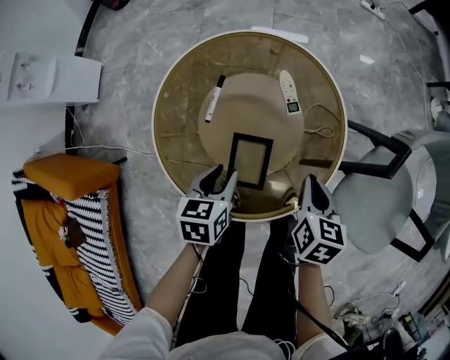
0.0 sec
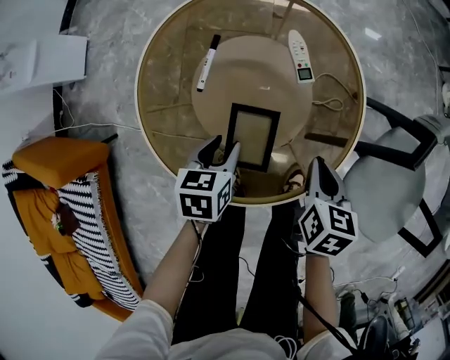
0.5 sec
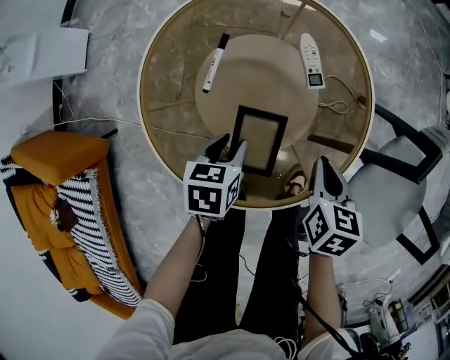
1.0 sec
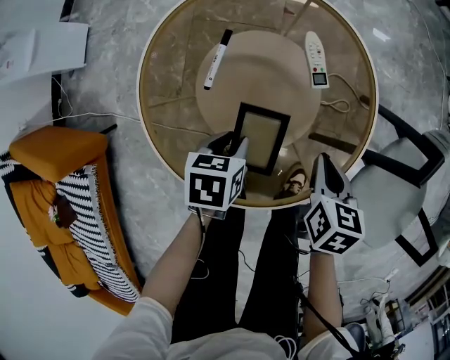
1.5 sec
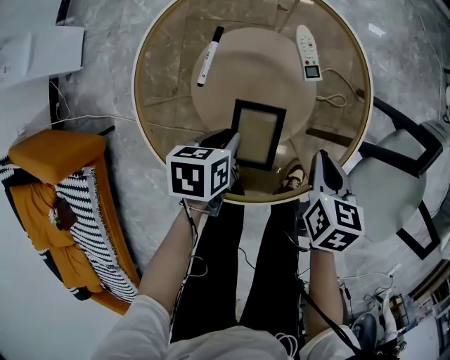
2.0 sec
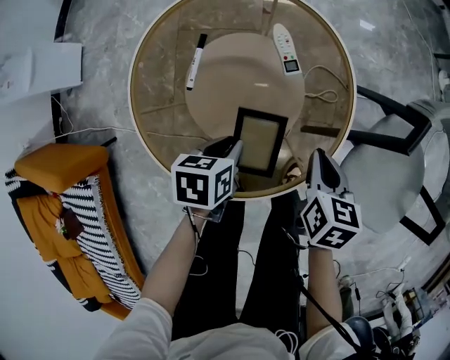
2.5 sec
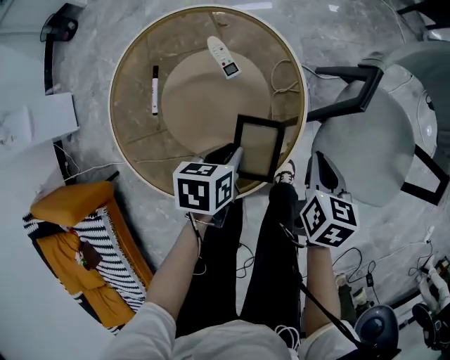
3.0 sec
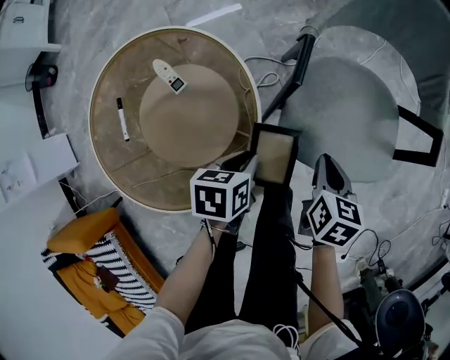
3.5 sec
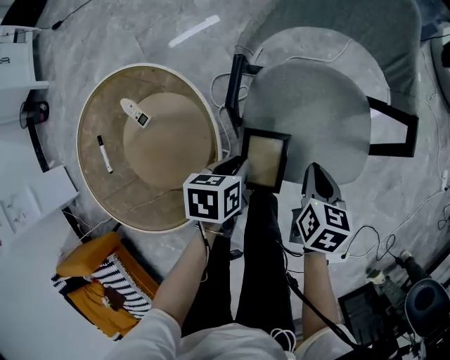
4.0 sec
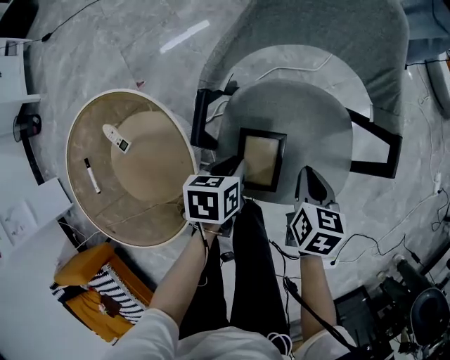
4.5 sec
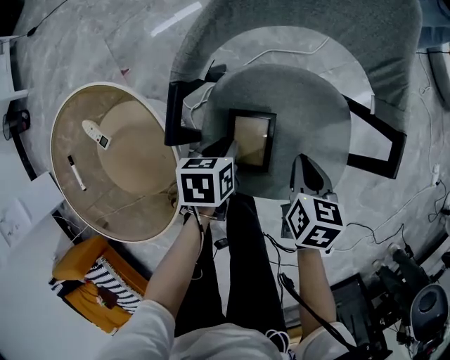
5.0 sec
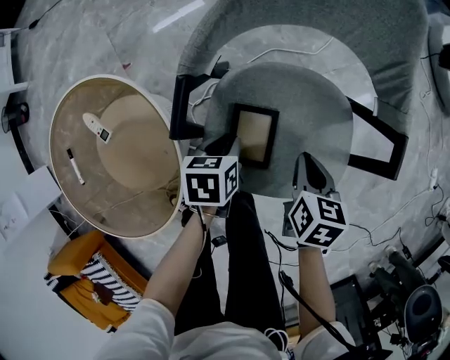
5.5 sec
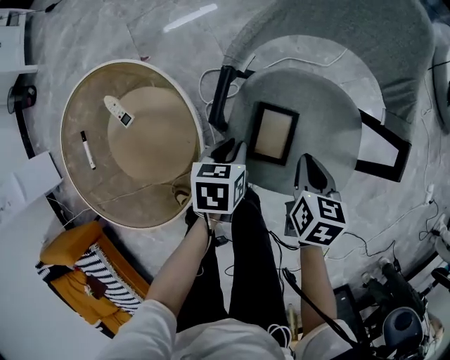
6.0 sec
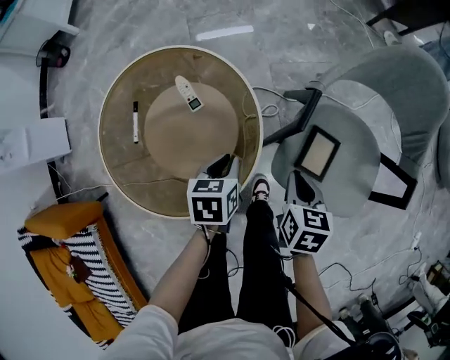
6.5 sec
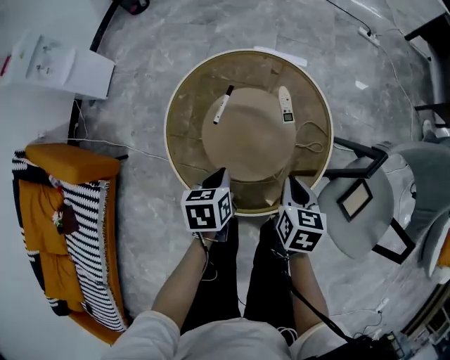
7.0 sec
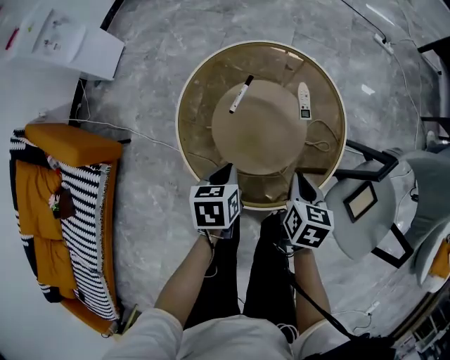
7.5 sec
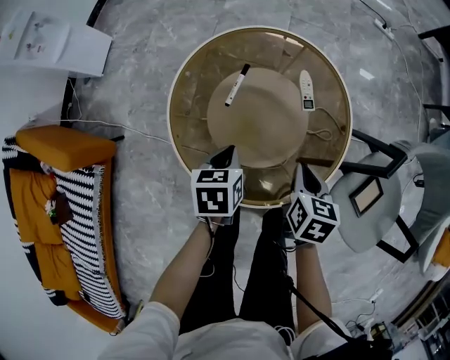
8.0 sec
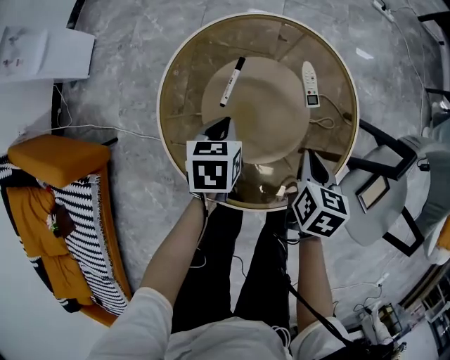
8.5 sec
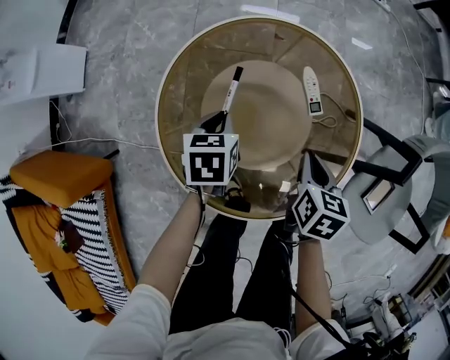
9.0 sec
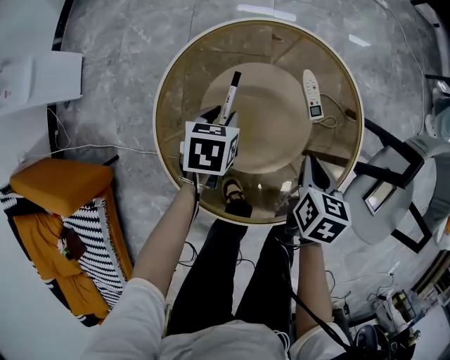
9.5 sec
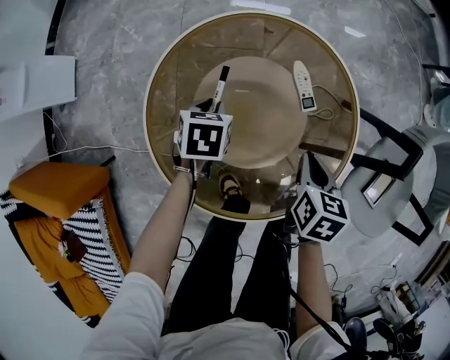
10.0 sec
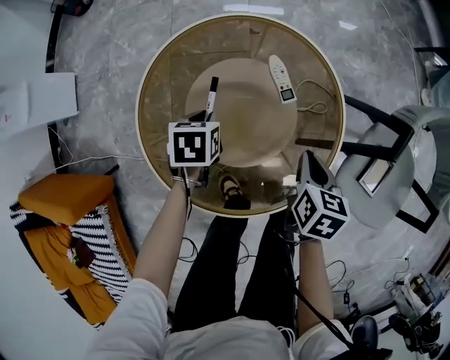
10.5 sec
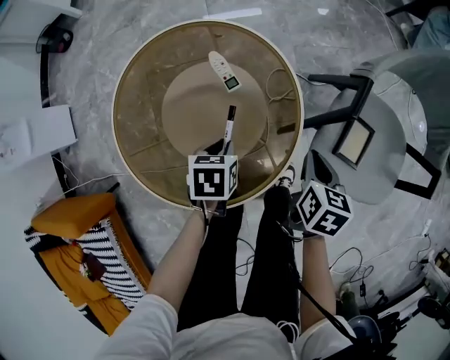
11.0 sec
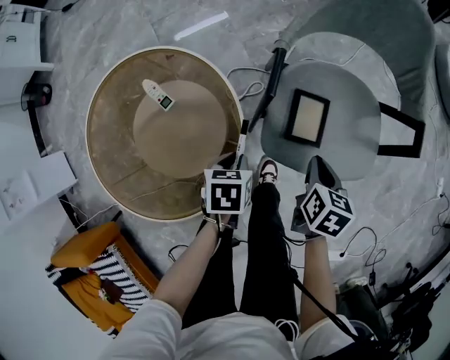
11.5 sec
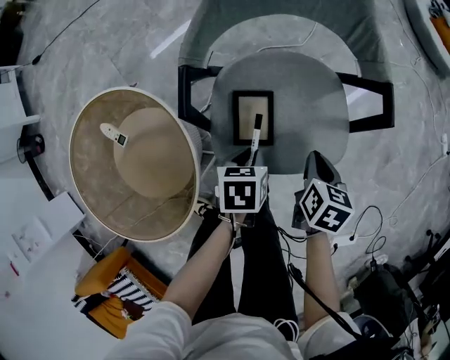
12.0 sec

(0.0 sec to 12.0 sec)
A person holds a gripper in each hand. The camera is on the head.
0.0 sec - 2.0 sec: The grippers both shift downward by roughly 10 cm.
2.0 sec - 4.0 sec: The left gripper moves some 40 cm, and changes its angle by about 30 degrees, while the right gripper changes place by approximately 35 cm, and swivels some 40 degrees.
4.0 sec - 6.0 sec: Both grippers move forward, some 5 cm.
6.0 sec - 8.0 sec: The two grippers travel together, about 40 cm. The left gripper turns by about 40 degrees, while the right gripper rotates some 30 degrees.
8.0 sec - 10.0 sec: The right gripper moves forward and downward, about 5 cm; the left gripper heads forward and downward, covering some 20 cm, and rotates about 20 degrees.
10.0 sec - 12.0 sec: Both grippers are carried approximately 60 cm. The right gripper turns by approximately 40 degrees; the left gripper rotates some 30 degrees.

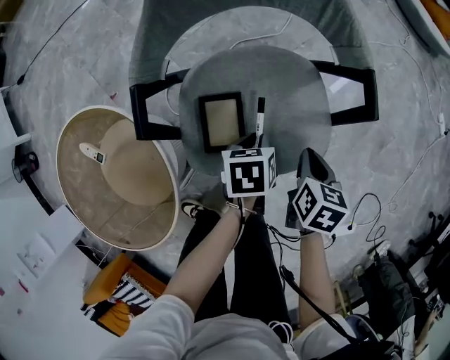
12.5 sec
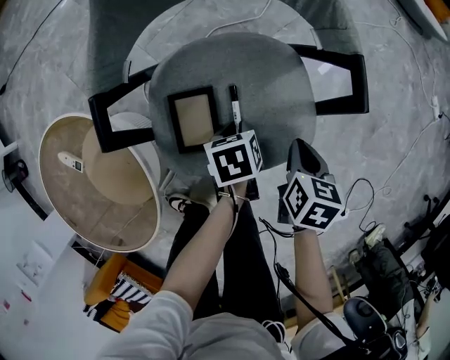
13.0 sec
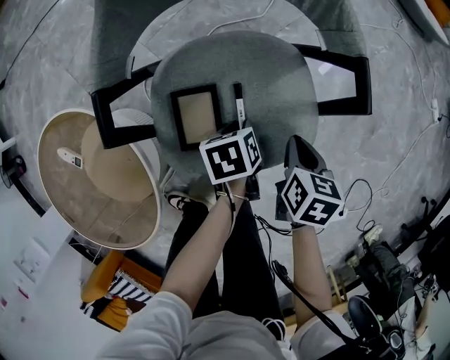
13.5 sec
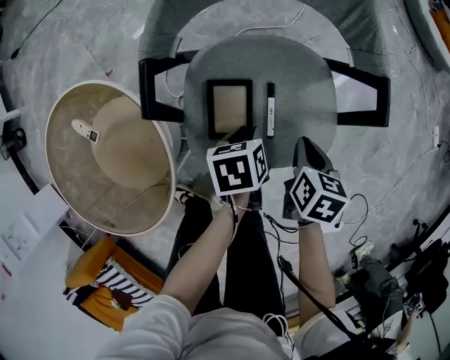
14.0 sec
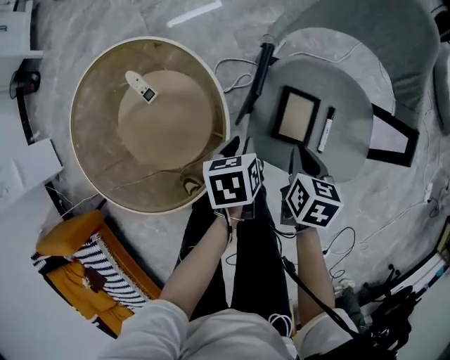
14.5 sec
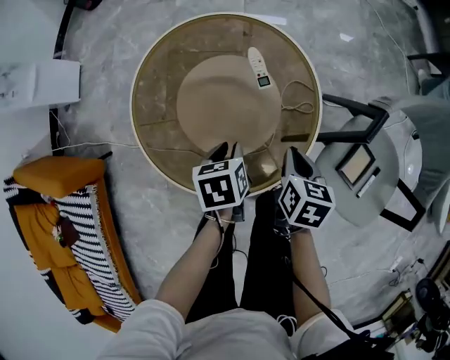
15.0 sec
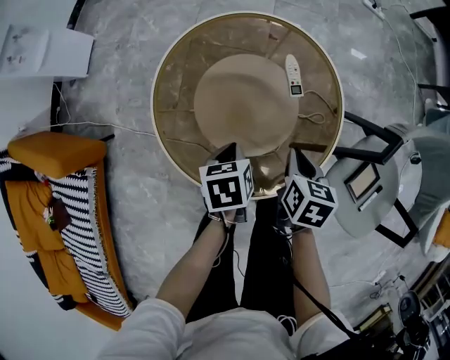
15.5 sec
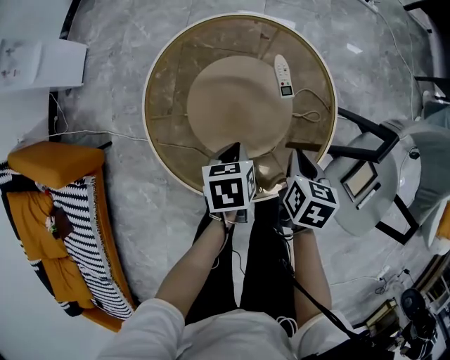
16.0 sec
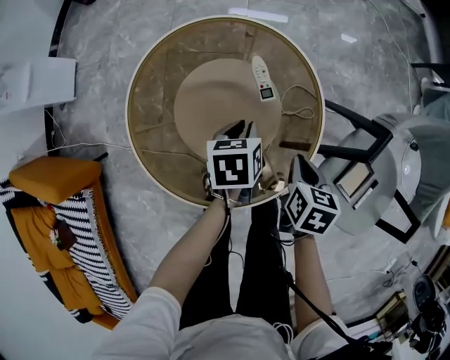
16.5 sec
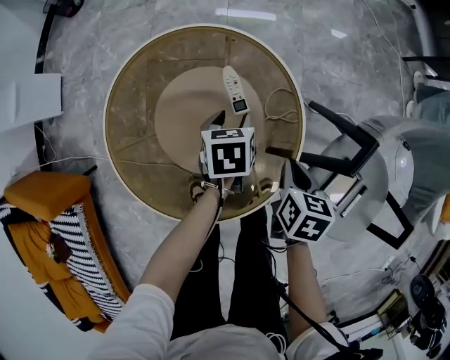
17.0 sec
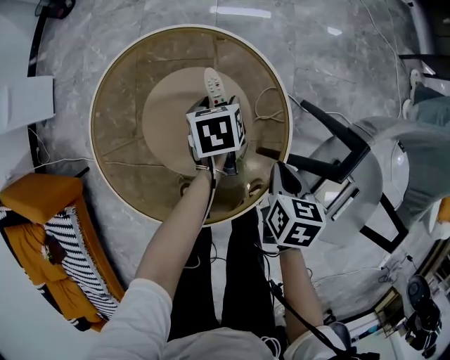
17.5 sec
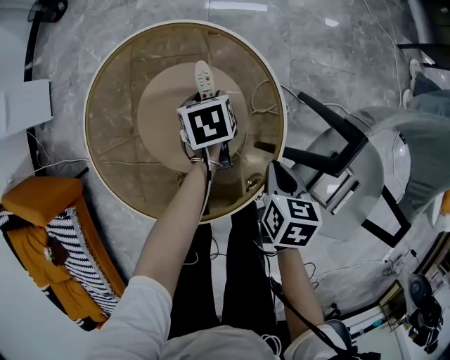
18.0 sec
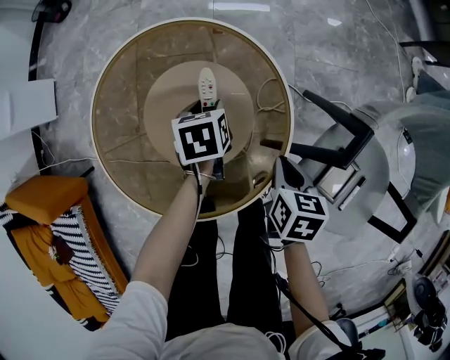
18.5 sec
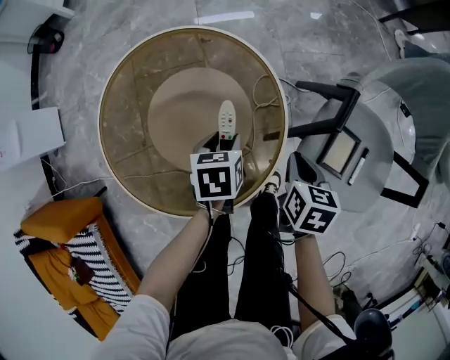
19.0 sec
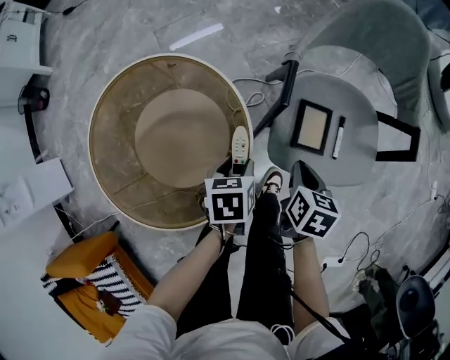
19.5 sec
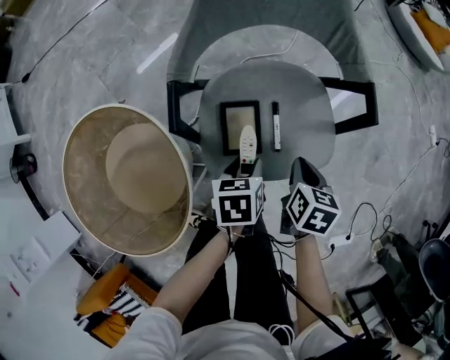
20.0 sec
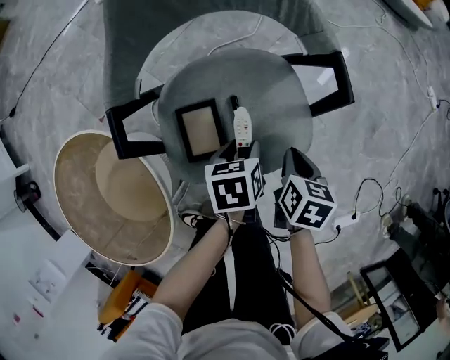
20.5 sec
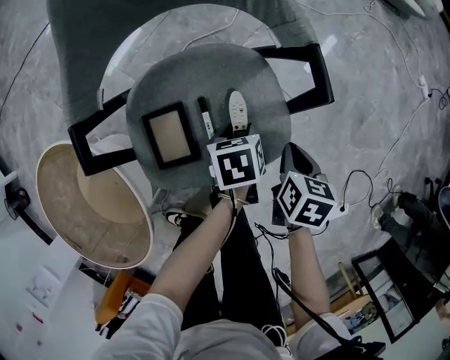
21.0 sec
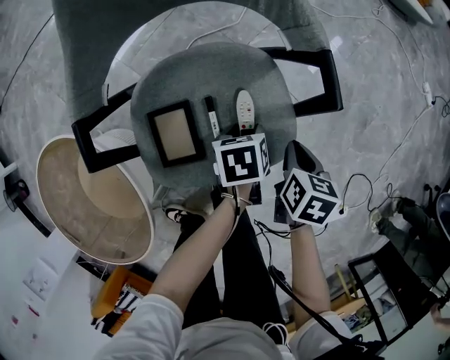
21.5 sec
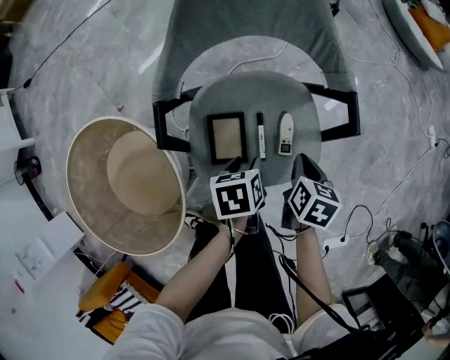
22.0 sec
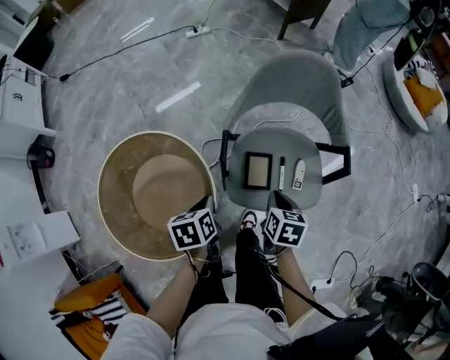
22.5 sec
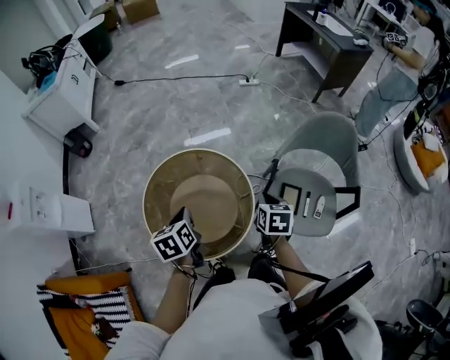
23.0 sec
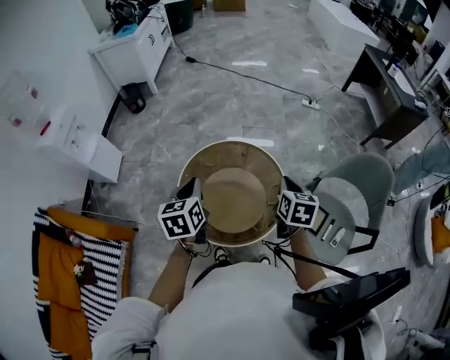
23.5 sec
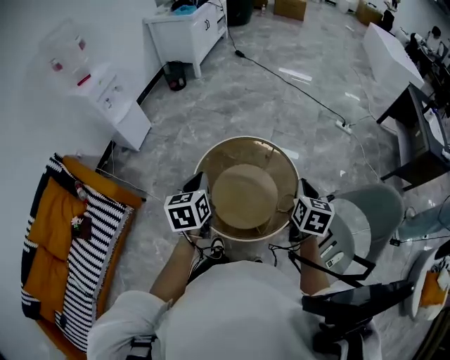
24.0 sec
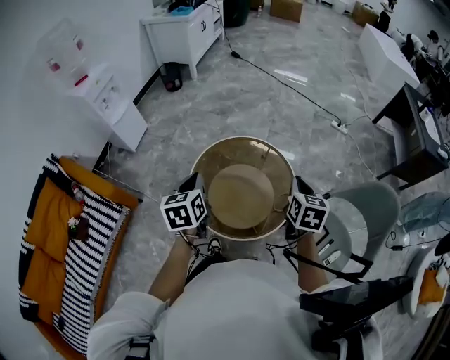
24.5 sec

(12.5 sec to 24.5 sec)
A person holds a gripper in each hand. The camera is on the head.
12.5 sec - 14.5 sec: The left gripper ends up about 25 cm from where it was, and changes its angle by some 30 degrees; the right gripper moves approximately 20 cm, and turns by some 20 degrees.
14.5 sec - 16.5 sec: The right gripper changes place by approximately 25 cm, and rotates about 20 degrees, while the left gripper moves some 30 cm.
16.5 sec - 18.5 sec: The left gripper travels forward and downward by approximately 10 cm, and opens up. The right gripper travels to the right by approximately 5 cm.
18.5 sec - 20.5 sec: The pair of grippers is taken some 50 cm. The right gripper rotates around the line of its fingers by approximately 40 degrees, clockwise from behind. Meanwhile the left gripper rotates roughly 50 degrees.
20.5 sec - 22.5 sec: The left gripper moves roughly 35 cm, turns by about 30 degrees, and closes. The right gripper moves some 25 cm, and turns by roughly 20 degrees.
22.5 sec - 24.5 sec: The right gripper moves roughly 40 cm, and rotates some 50 degrees; the left gripper shifts by approximately 50 cm, and changes its angle by roughly 60 degrees.

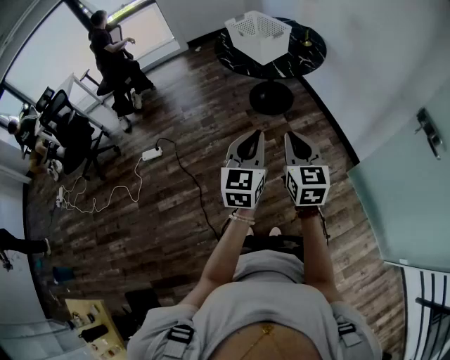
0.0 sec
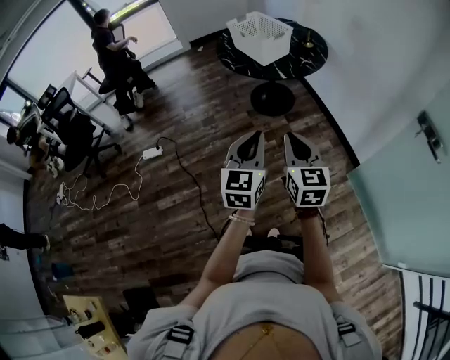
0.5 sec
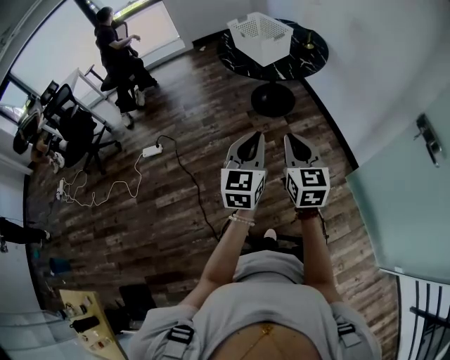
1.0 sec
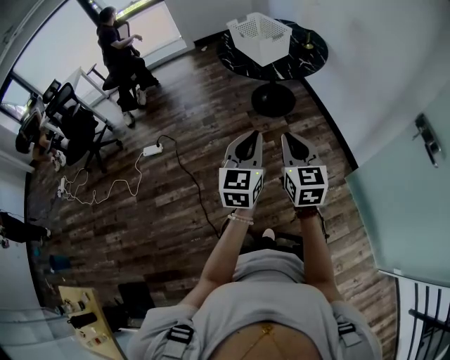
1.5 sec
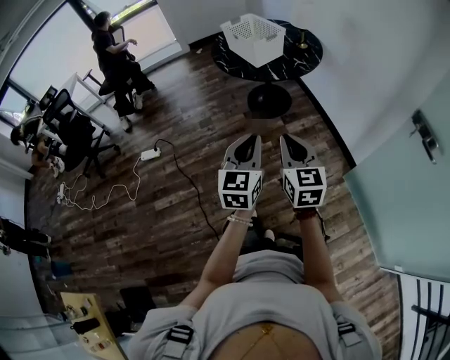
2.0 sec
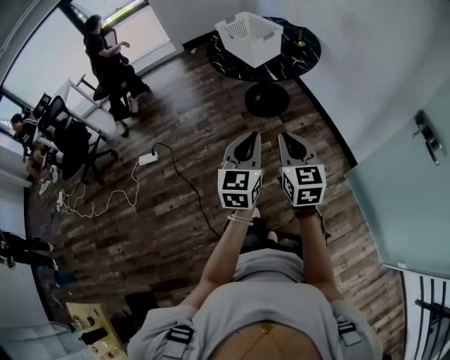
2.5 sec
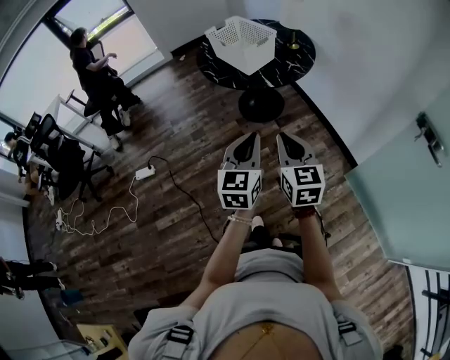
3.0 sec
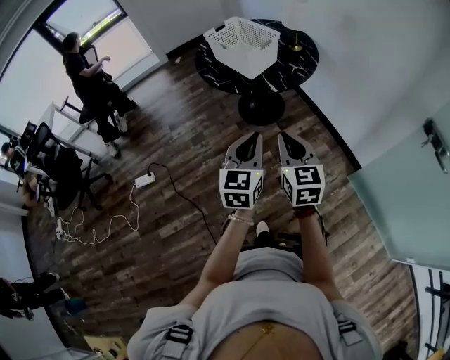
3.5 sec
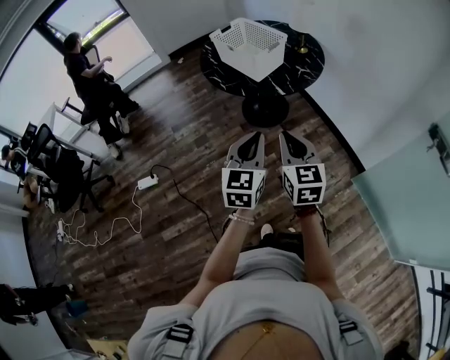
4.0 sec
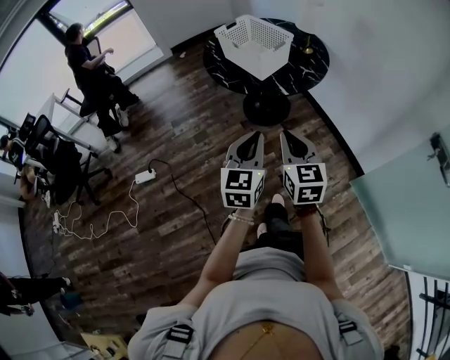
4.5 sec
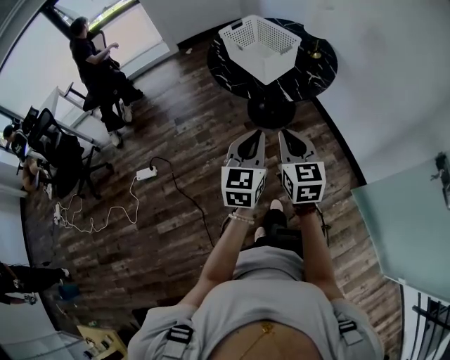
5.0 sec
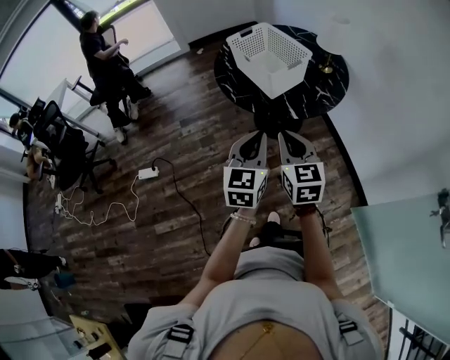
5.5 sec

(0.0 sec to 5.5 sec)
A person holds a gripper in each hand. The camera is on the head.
0.0 sec - 2.0 sec: The left gripper heads to the right, covering roughly 5 cm.
2.0 sec - 3.5 sec: Both grippers move forward, some 15 cm.
3.5 sec - 5.5 sec: Both grippers travel together forward, roughly 15 cm.
